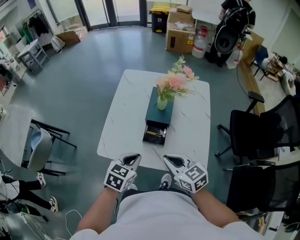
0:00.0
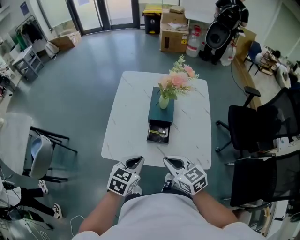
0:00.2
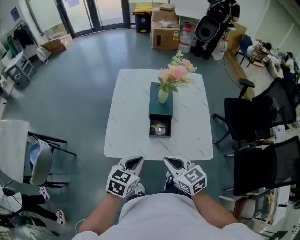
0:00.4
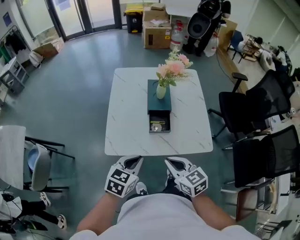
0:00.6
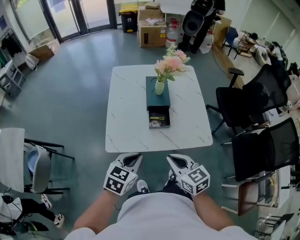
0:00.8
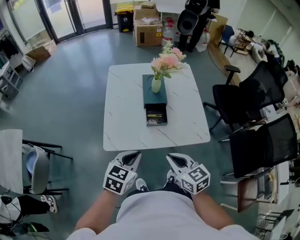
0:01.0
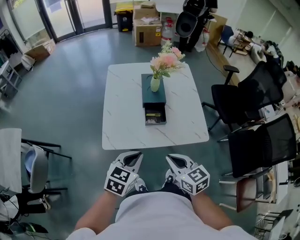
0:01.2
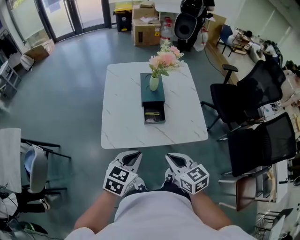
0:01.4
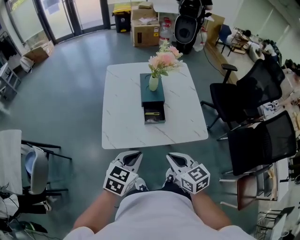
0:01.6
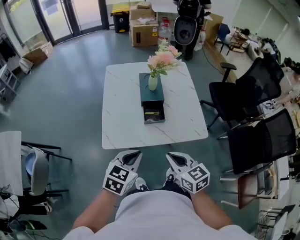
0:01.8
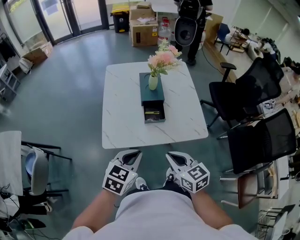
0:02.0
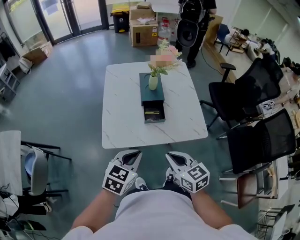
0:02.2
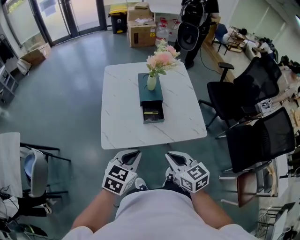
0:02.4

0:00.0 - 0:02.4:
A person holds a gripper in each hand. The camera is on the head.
0:00.0 - 0:01.2: The grippers both shift backward and to the left by about 15 cm. The right gripper rotates roughly 20 degrees.
0:01.2 - 0:02.4: The grippers stay close to where they were, moving slightly.

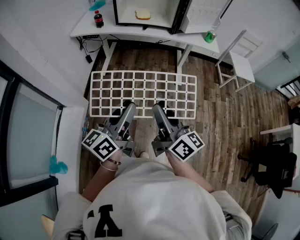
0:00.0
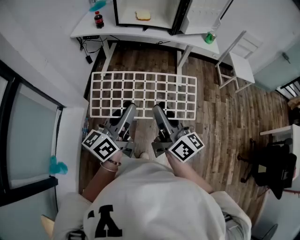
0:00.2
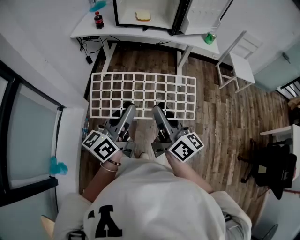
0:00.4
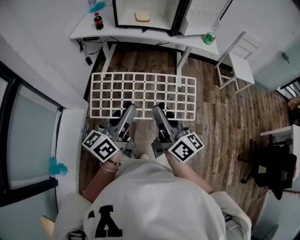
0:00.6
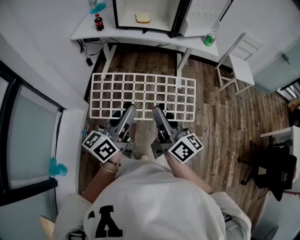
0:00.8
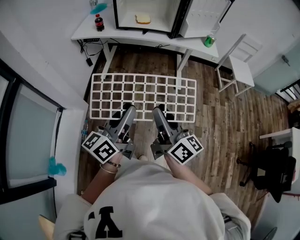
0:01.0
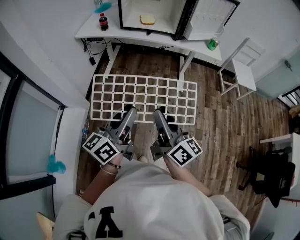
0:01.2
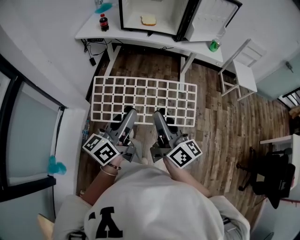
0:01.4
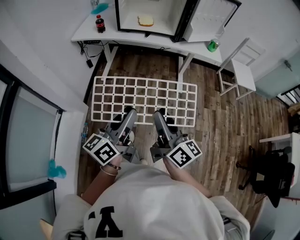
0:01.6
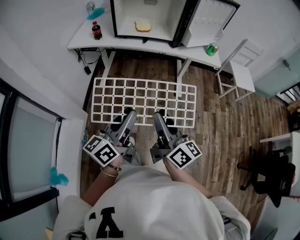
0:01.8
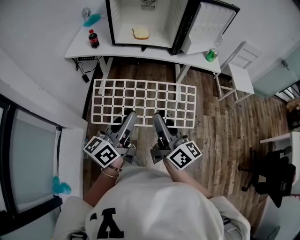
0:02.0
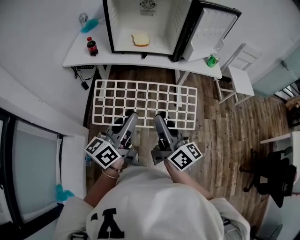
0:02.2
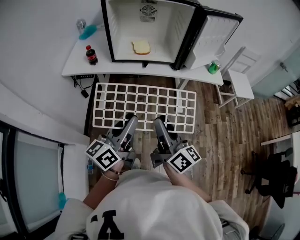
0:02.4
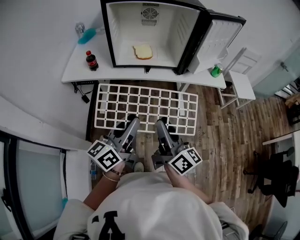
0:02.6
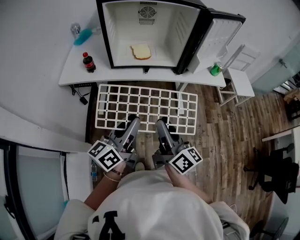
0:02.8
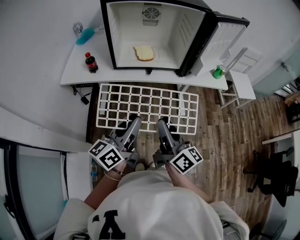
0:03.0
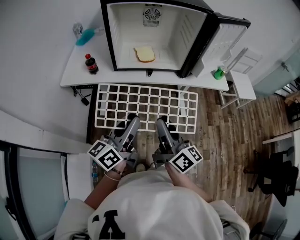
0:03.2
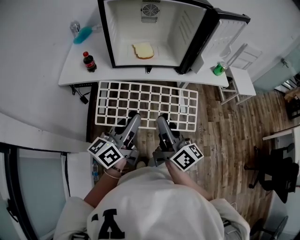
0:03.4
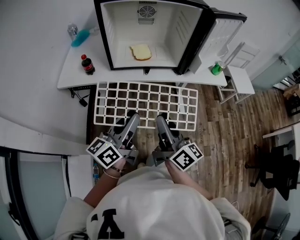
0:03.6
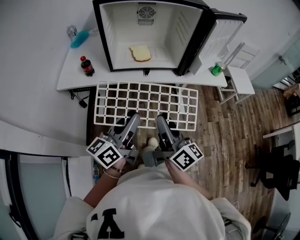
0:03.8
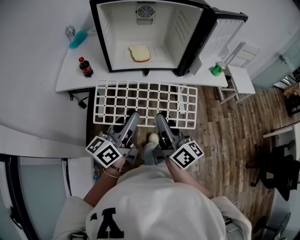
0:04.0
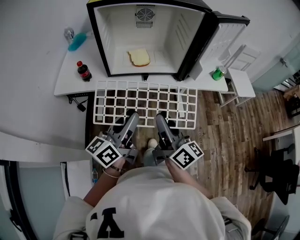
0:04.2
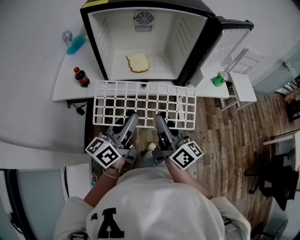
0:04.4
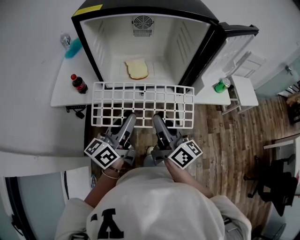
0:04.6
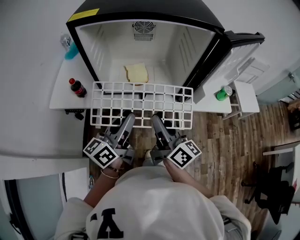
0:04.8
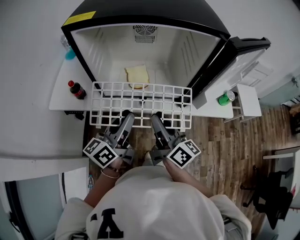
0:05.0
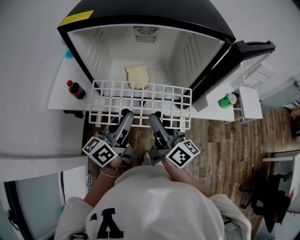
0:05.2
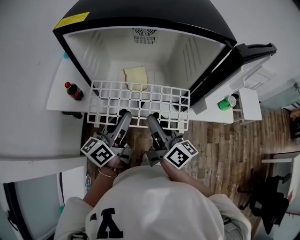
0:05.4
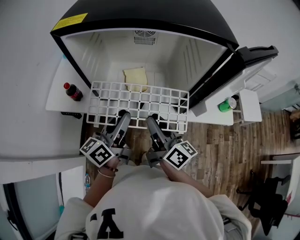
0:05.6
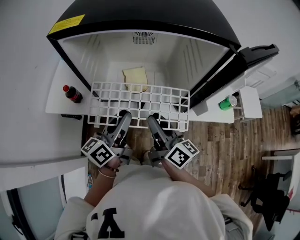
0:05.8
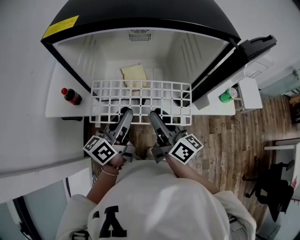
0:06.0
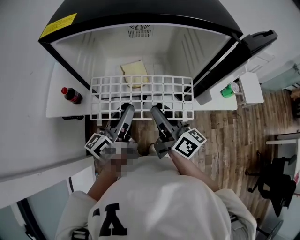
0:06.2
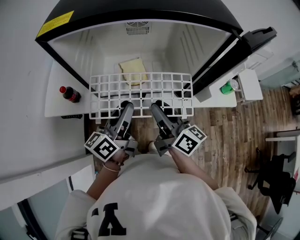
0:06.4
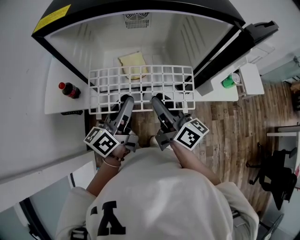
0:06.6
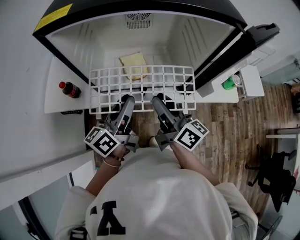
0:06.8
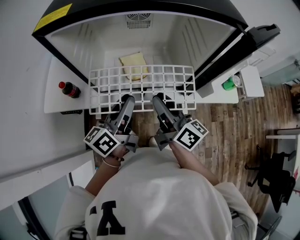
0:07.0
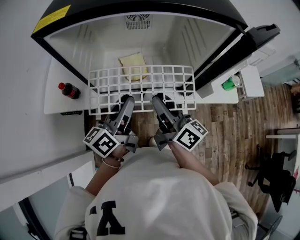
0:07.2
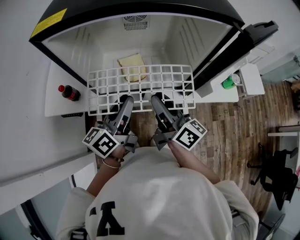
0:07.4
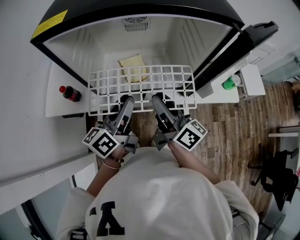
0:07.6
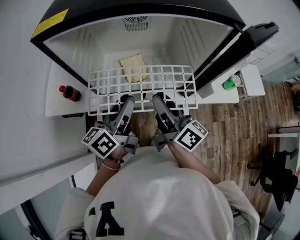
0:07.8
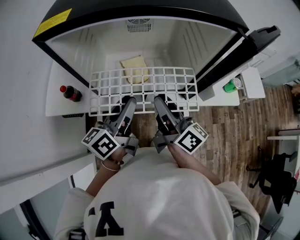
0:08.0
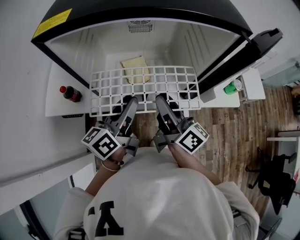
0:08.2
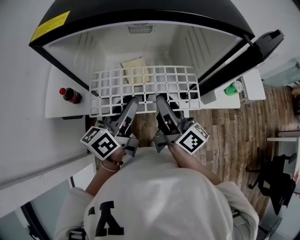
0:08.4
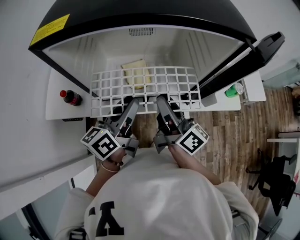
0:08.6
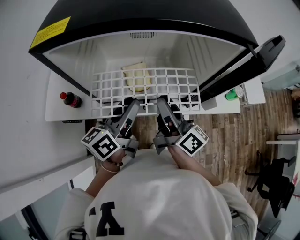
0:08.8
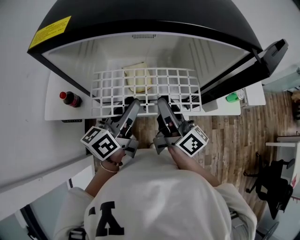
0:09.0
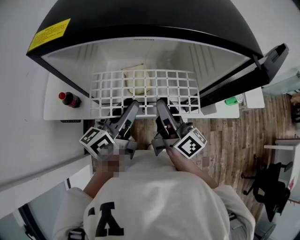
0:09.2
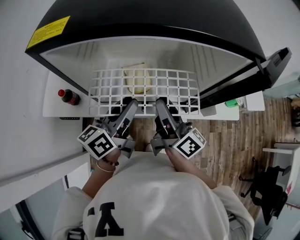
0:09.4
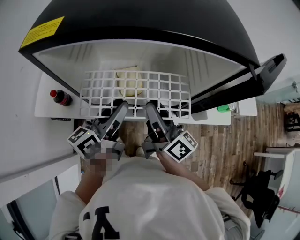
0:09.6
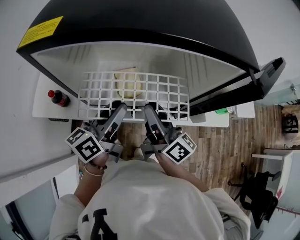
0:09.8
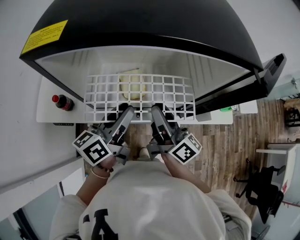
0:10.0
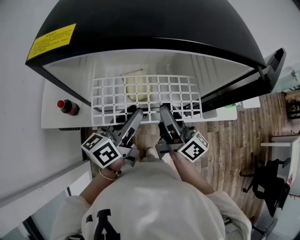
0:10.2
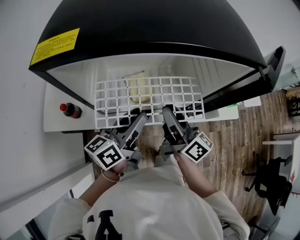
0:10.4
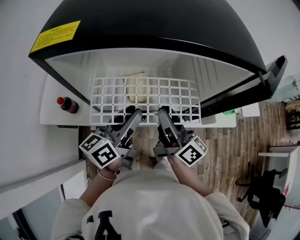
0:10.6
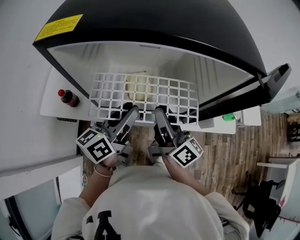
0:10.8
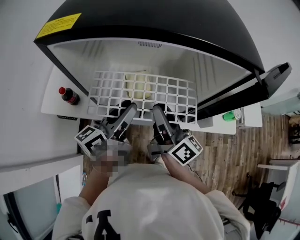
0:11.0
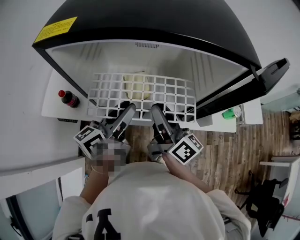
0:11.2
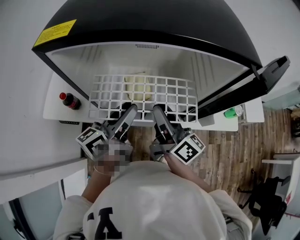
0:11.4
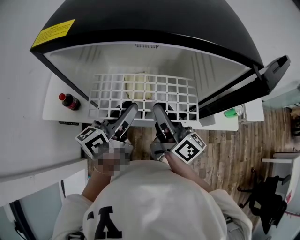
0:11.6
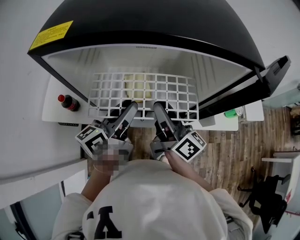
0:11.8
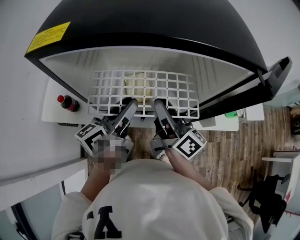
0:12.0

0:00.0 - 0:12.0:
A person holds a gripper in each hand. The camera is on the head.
0:00.0 - 0:01.6: The grippers move only a little.
0:01.6 - 0:03.0: The grippers both shift forward by about 25 cm.
0:03.0 - 0:04.4: Both grippers move forward, roughly 10 cm.
0:04.4 - 0:06.0: The grippers both shift forward by approximately 15 cm.
0:06.0 - 0:09.0: The grippers move only a little.
0:09.0 - 0:12.0: The grippers make only small movements.

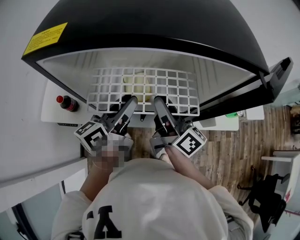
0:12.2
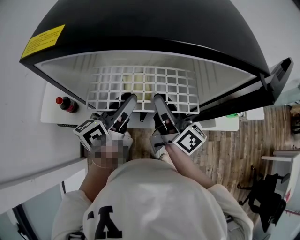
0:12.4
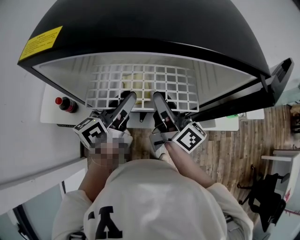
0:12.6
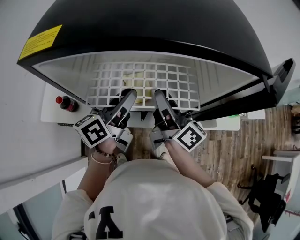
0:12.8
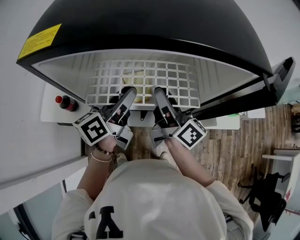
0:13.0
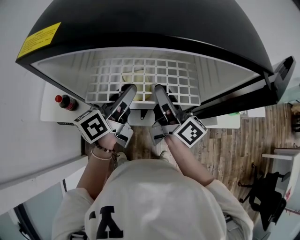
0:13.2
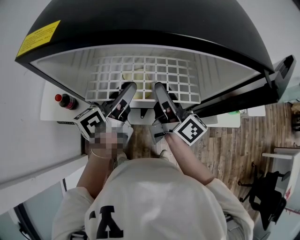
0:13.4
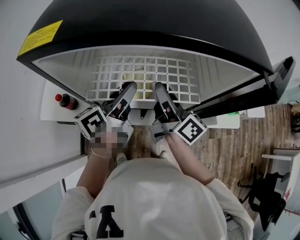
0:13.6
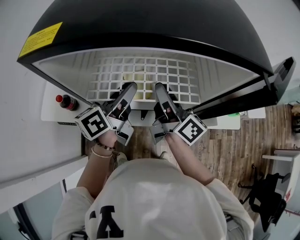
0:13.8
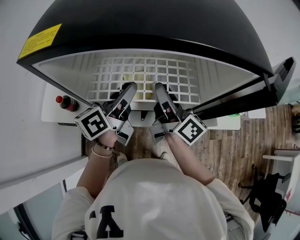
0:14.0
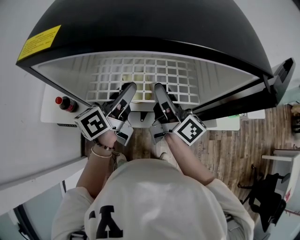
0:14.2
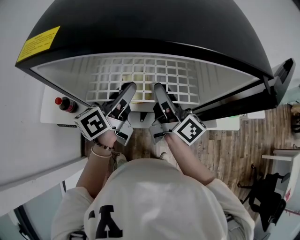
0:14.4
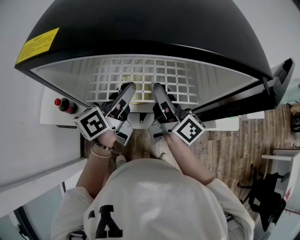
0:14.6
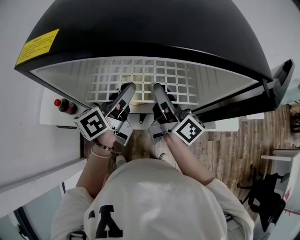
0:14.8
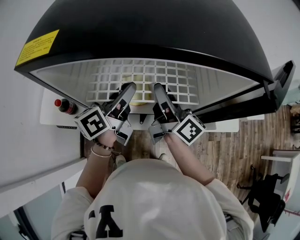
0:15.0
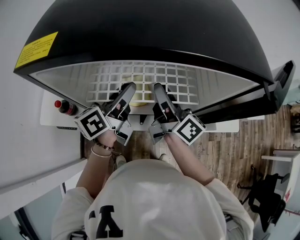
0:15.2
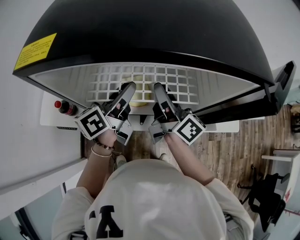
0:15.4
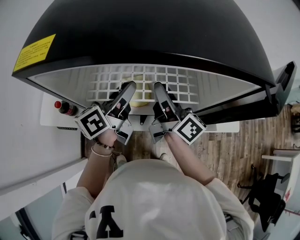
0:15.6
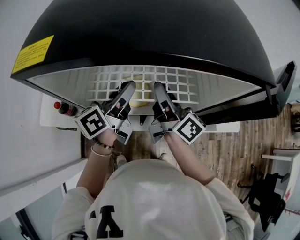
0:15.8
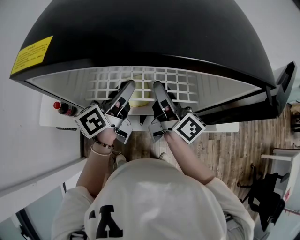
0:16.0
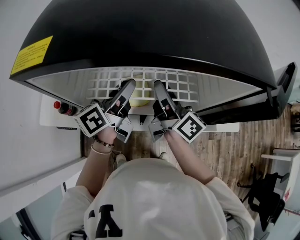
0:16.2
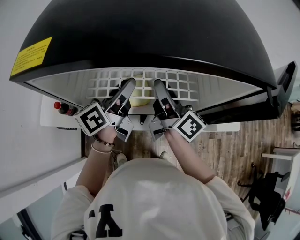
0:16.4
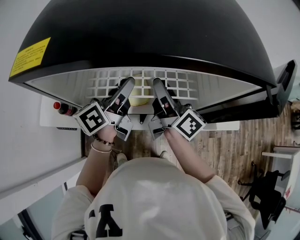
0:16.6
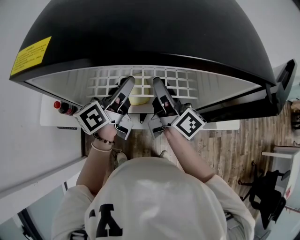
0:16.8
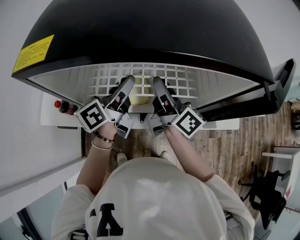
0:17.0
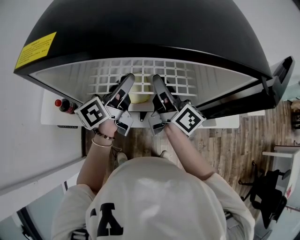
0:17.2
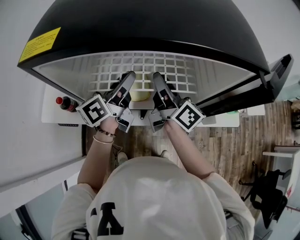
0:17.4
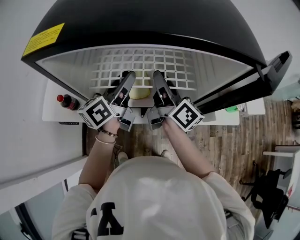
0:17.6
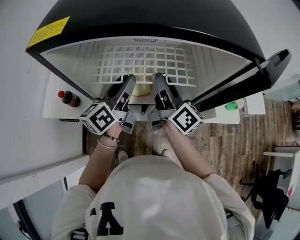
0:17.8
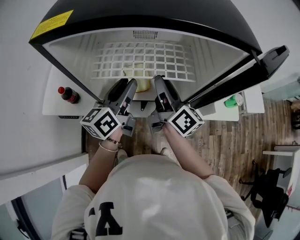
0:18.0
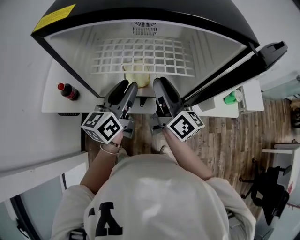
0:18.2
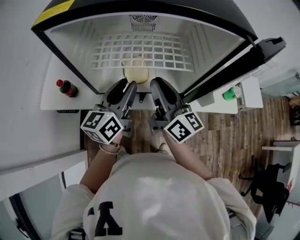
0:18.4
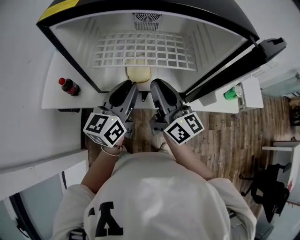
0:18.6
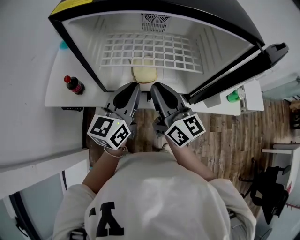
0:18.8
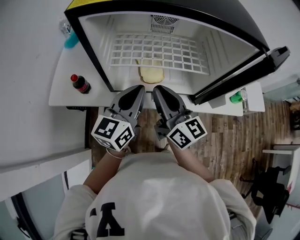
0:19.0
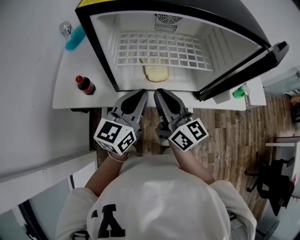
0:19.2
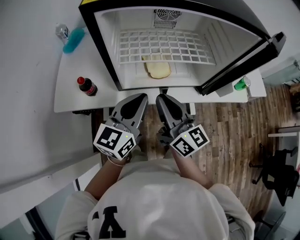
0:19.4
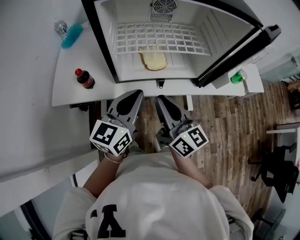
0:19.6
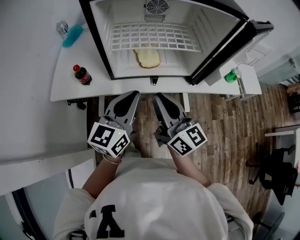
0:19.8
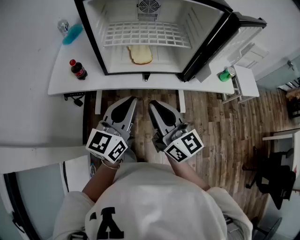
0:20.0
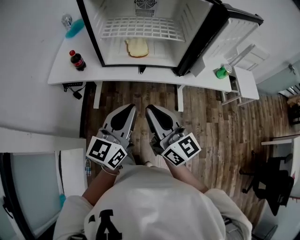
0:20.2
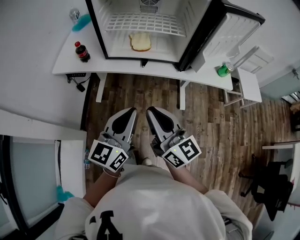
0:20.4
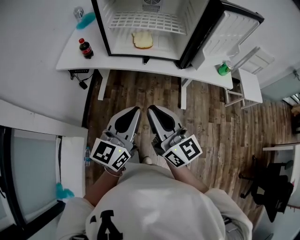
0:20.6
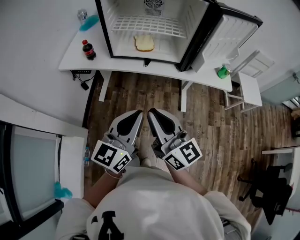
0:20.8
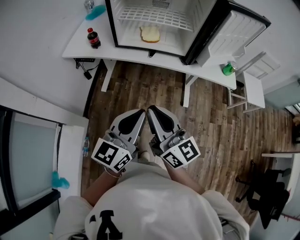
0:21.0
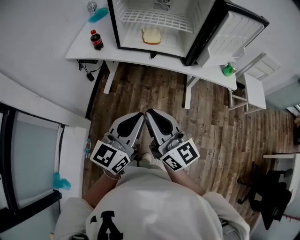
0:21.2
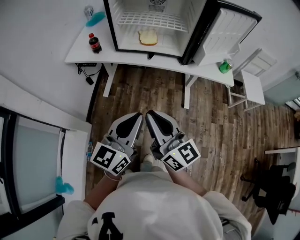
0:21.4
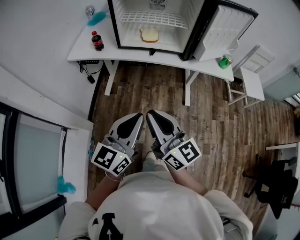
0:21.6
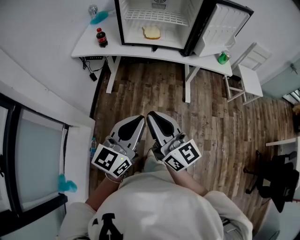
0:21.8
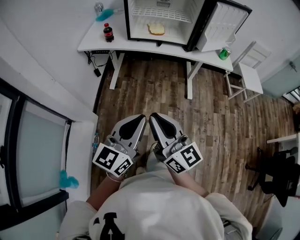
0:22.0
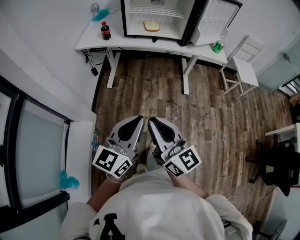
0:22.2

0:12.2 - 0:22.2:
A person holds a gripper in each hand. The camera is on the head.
0:12.2 - 0:15.0: The grippers move only a little.
0:15.0 - 0:16.4: The grippers make only small movements.
0:16.4 - 0:18.0: The left gripper goes about 5 cm backward.
0:18.0 - 0:19.4: The two grippers go roughly 15 cm backward and to the left. The right gripper swivels some 20 degrees, and closes up. Meanwhile the left gripper changes its angle by some 30 degrees, and closes up.
0:19.4 - 0:20.8: The two grippers go about 25 cm backward.
0:20.8 - 0:22.2: The two grippers go approximately 25 cm backward.
